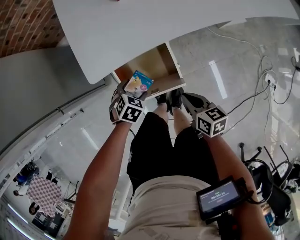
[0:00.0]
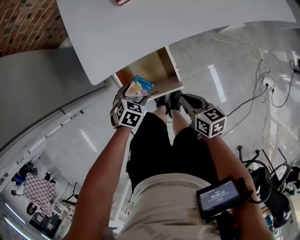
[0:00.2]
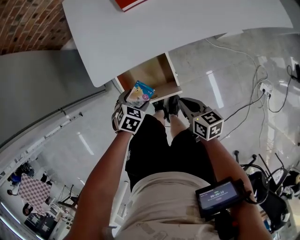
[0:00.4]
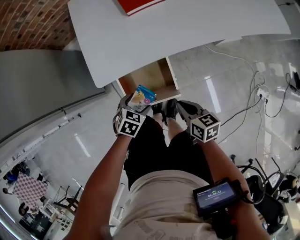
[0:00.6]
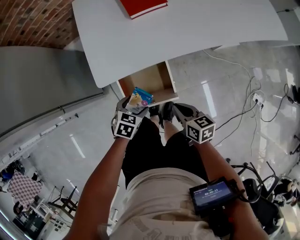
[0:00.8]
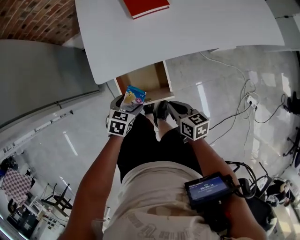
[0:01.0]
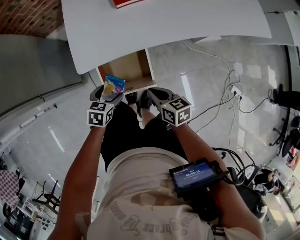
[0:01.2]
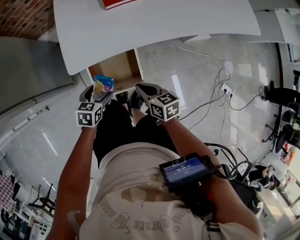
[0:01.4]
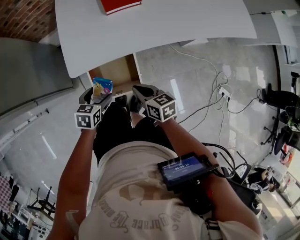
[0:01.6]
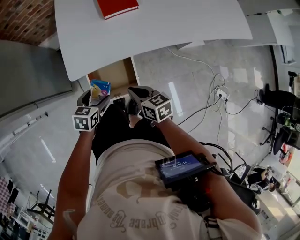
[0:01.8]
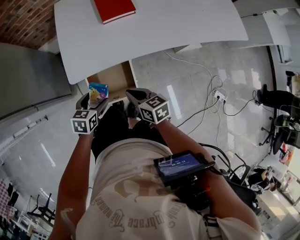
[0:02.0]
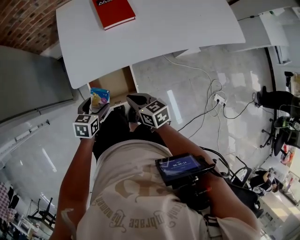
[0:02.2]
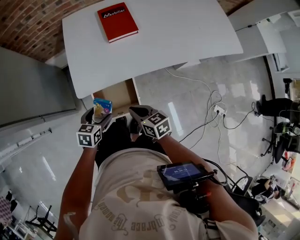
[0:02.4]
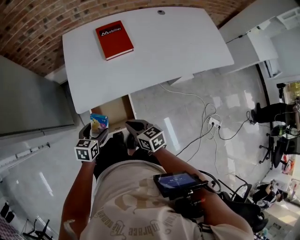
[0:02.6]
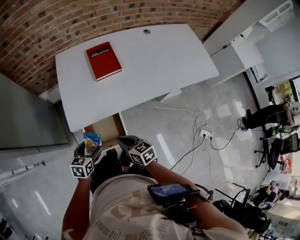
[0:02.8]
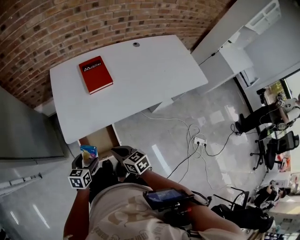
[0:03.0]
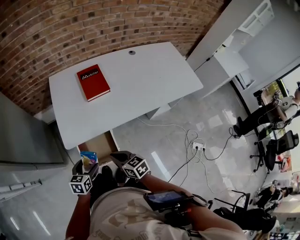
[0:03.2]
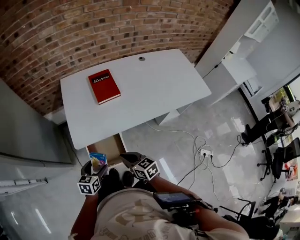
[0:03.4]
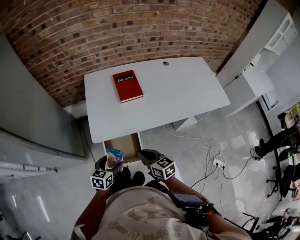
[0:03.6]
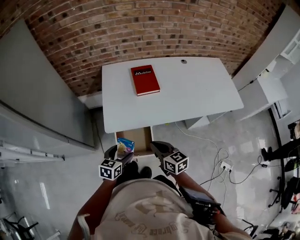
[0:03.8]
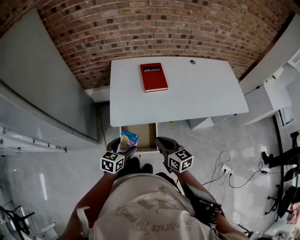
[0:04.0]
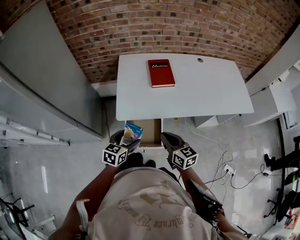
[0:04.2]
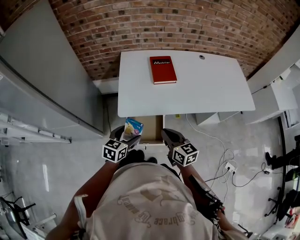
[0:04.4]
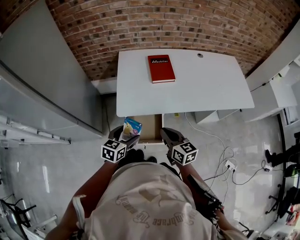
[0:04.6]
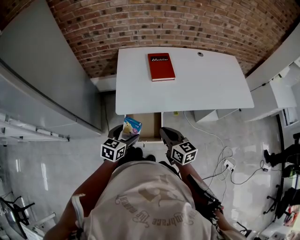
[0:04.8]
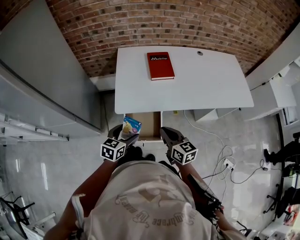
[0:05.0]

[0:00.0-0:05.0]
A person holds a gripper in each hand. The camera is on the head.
0.0 to 1.6 s: The two grippers go about 10 cm upward. The left gripper rotates approximately 40 degrees.
1.6 to 3.4 s: The grippers both shift upward by some 10 cm.
3.4 to 5.0 s: The two grippers go roughly 5 cm upward.

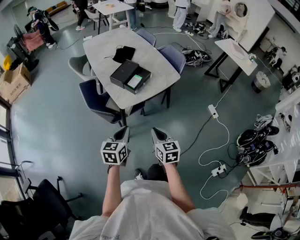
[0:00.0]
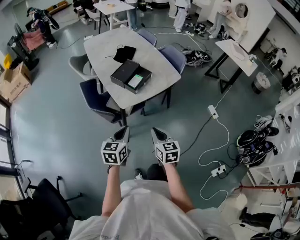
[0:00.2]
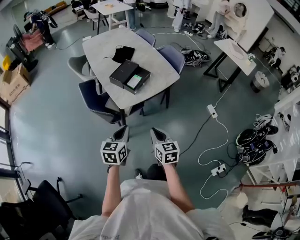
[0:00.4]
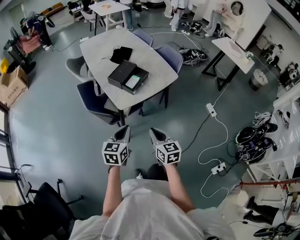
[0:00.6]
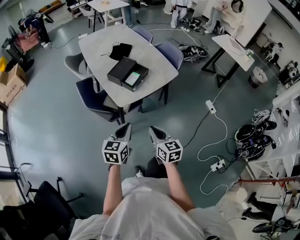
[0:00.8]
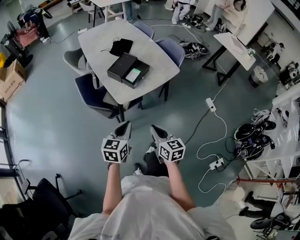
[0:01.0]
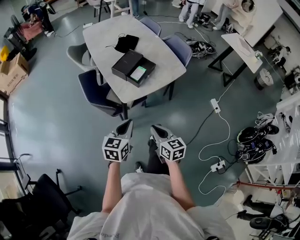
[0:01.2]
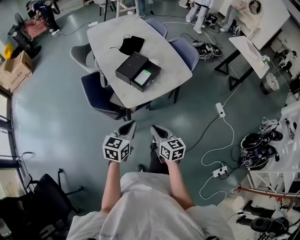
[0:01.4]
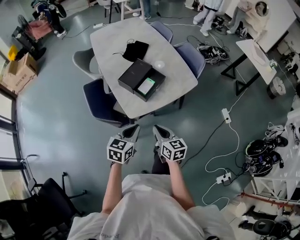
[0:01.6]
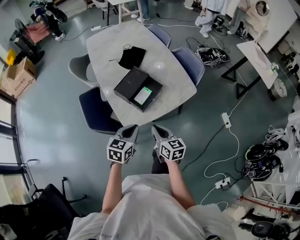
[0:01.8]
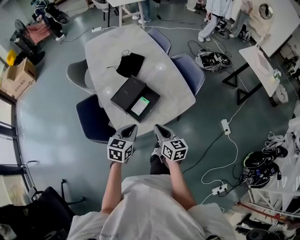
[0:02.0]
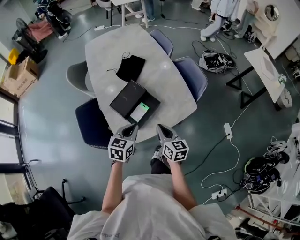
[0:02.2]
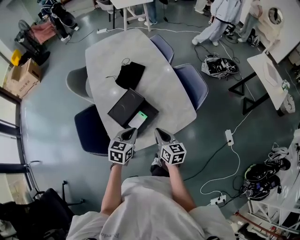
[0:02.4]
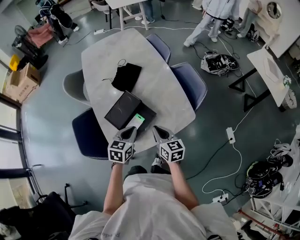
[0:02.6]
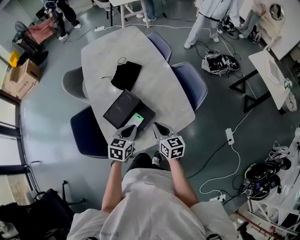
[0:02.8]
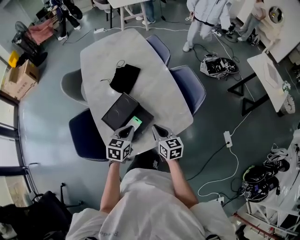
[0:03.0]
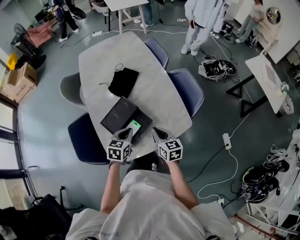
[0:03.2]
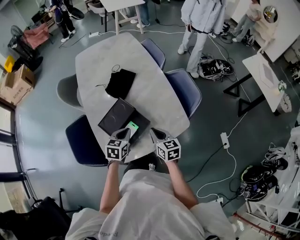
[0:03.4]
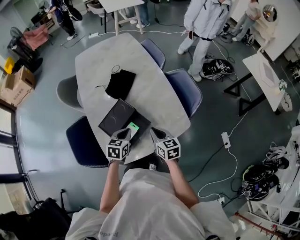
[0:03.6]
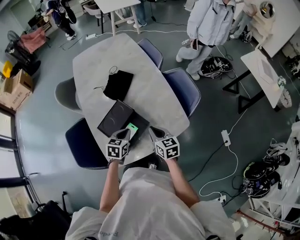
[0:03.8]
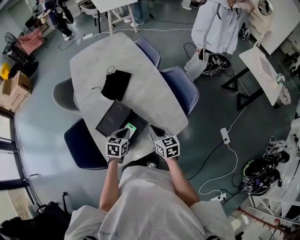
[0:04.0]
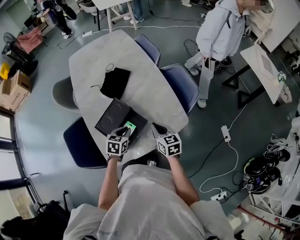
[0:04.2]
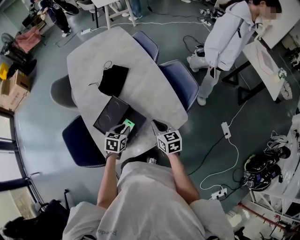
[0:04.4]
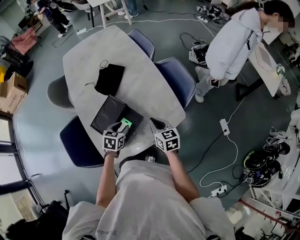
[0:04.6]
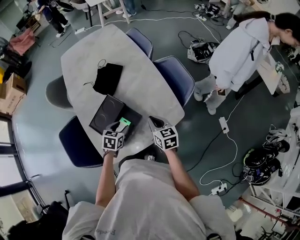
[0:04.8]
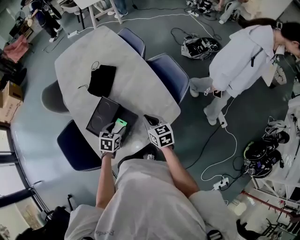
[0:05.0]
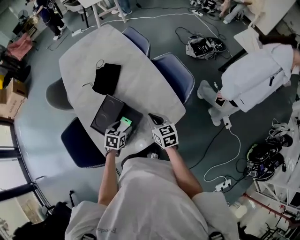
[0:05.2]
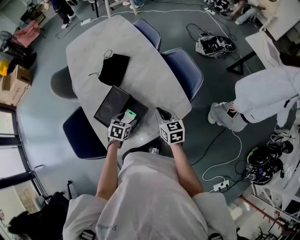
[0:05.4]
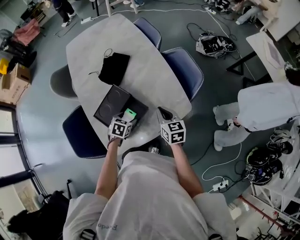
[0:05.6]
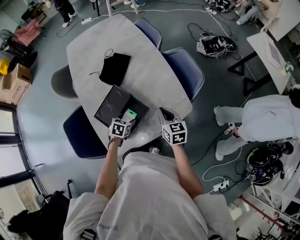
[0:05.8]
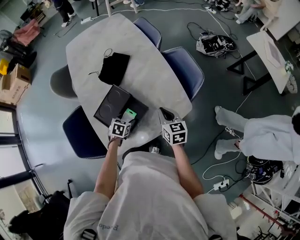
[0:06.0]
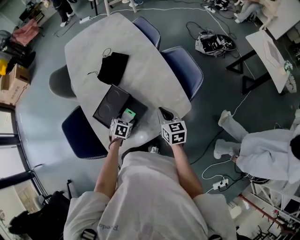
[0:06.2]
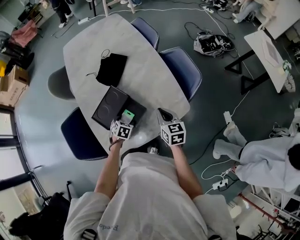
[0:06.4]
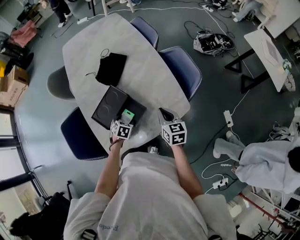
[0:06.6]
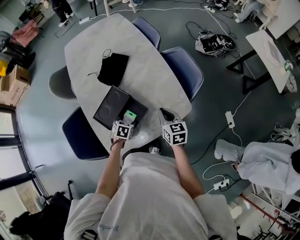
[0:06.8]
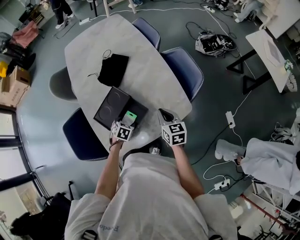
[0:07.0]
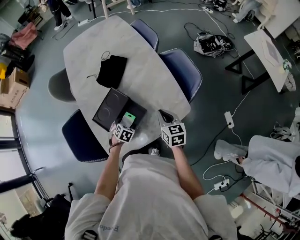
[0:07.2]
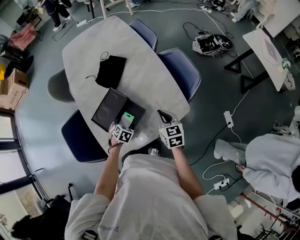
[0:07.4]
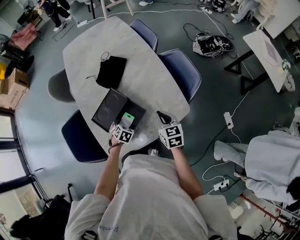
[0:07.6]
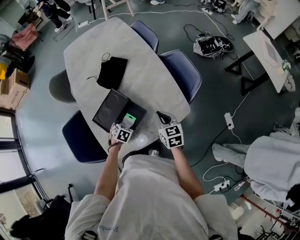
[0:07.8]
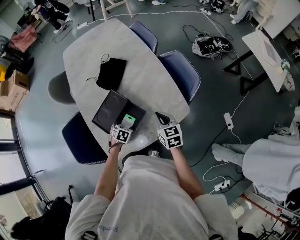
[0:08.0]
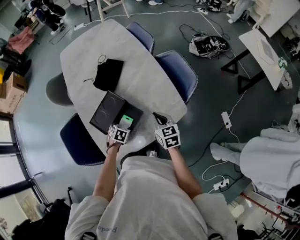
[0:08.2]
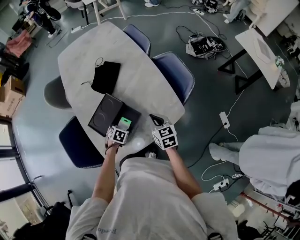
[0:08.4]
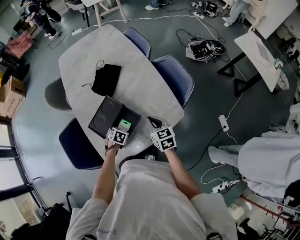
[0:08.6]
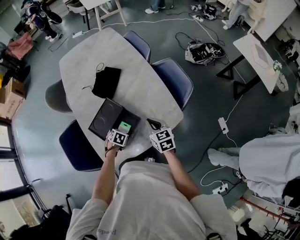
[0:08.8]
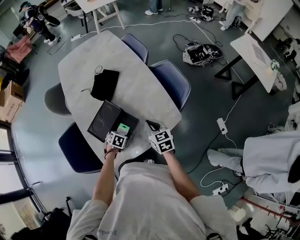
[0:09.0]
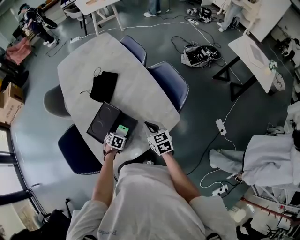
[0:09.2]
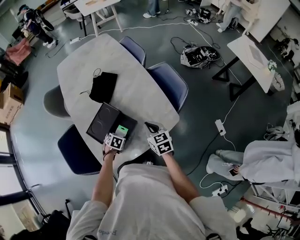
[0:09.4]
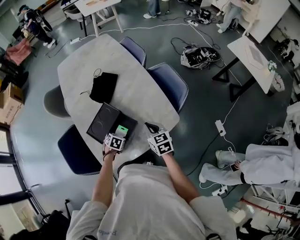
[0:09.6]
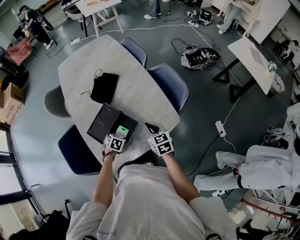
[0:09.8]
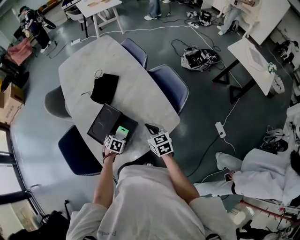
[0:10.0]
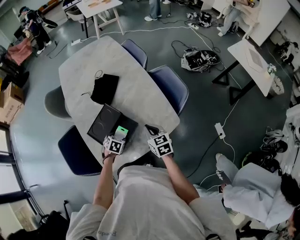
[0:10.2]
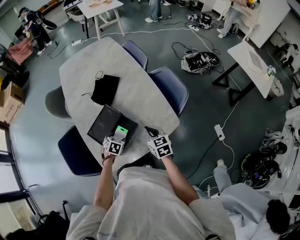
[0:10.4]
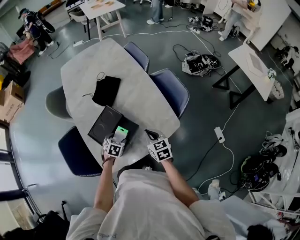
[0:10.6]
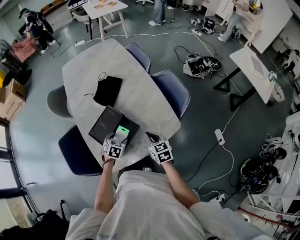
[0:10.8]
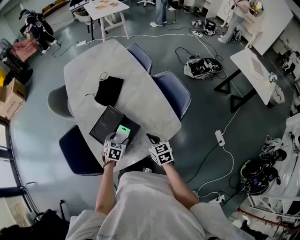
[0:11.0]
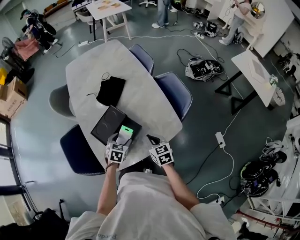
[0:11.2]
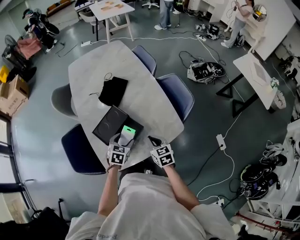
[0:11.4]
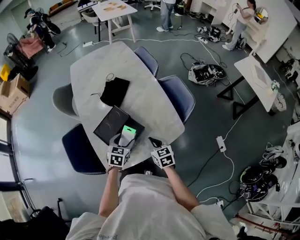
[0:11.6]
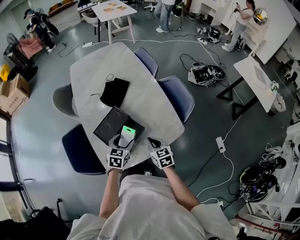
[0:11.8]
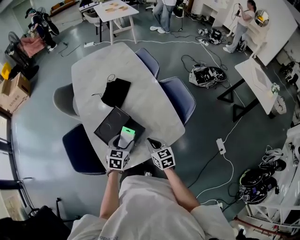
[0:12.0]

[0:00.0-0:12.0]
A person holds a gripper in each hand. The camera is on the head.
0.0 to 1.6 s: The grippers both shift forward by some 15 cm.
1.6 to 3.0 s: The two grippers go about 30 cm forward.
3.0 to 4.4 s: The left gripper is displaced downward by roughly 10 cm; the right gripper changes place by some 5 cm.
4.4 to 6.0 s: The left gripper goes some 10 cm downward, and opens up.
6.0 to 10.4 s: The grippers make only small movements.
10.4 to 12.0 s: The left gripper goes some 10 cm upward, and changes its angle by some 30 degrees; the right gripper shifts by some 5 cm.

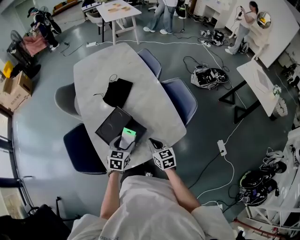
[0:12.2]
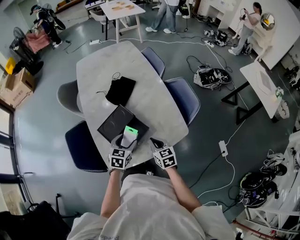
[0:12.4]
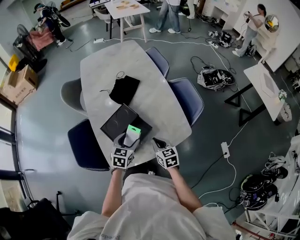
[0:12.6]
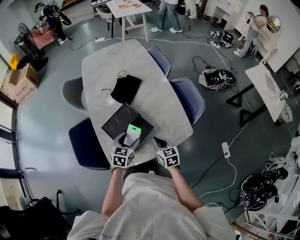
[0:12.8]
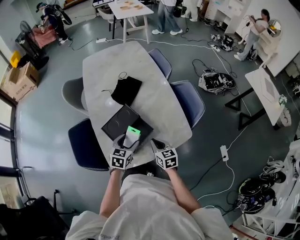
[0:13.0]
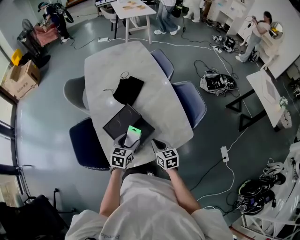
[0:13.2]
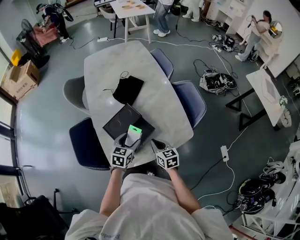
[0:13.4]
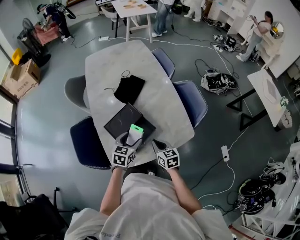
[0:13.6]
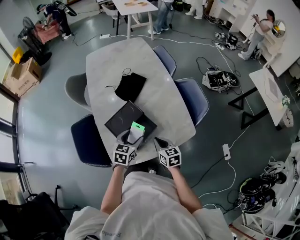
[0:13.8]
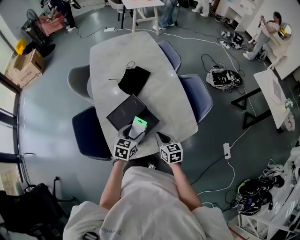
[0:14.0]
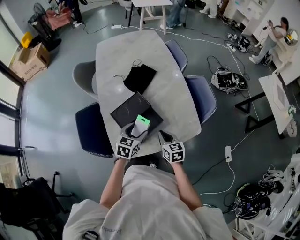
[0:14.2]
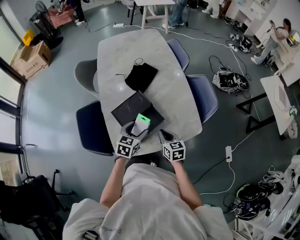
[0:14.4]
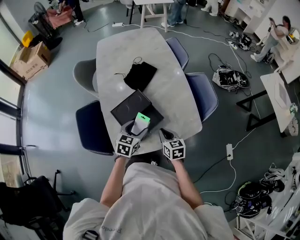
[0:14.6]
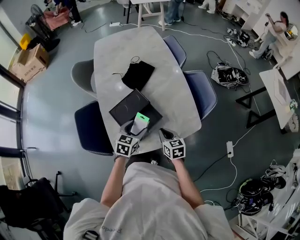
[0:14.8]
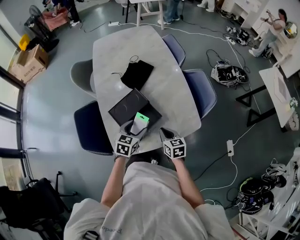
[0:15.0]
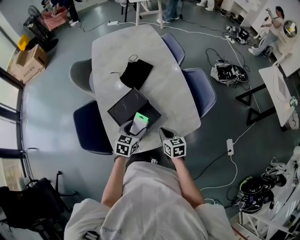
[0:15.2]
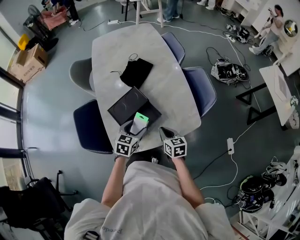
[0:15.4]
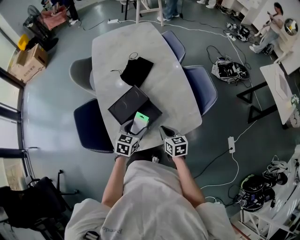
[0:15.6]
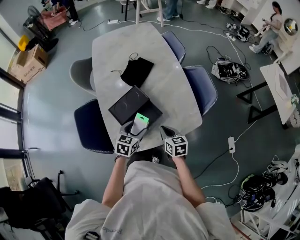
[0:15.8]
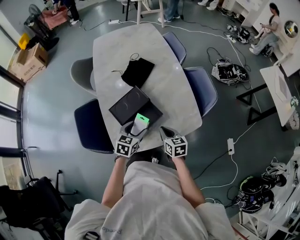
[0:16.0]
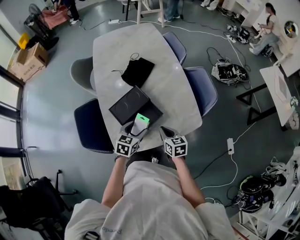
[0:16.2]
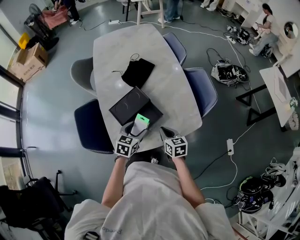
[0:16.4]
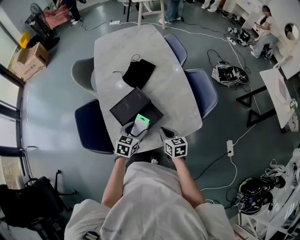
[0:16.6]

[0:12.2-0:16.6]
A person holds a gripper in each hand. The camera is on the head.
12.2 to 16.6 s: The grippers move only a little.

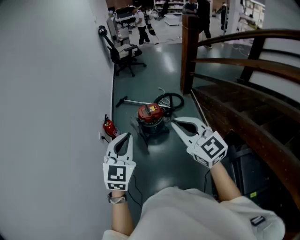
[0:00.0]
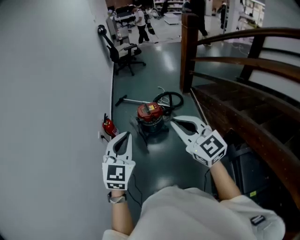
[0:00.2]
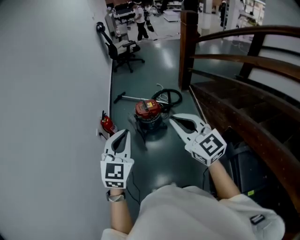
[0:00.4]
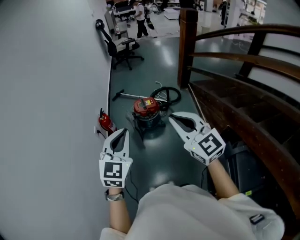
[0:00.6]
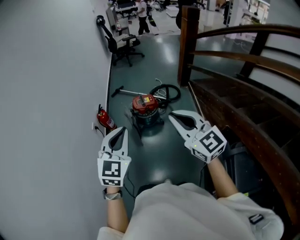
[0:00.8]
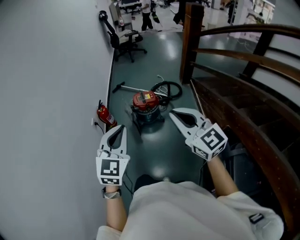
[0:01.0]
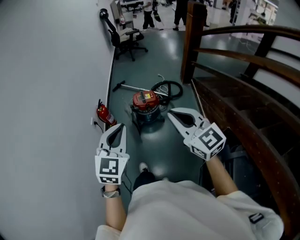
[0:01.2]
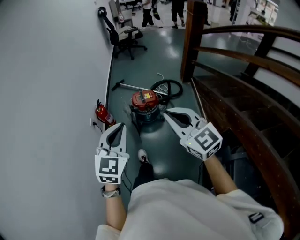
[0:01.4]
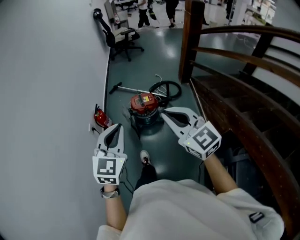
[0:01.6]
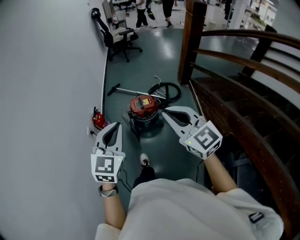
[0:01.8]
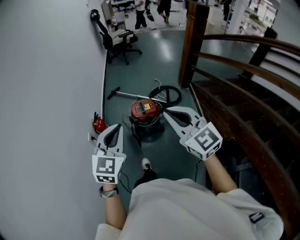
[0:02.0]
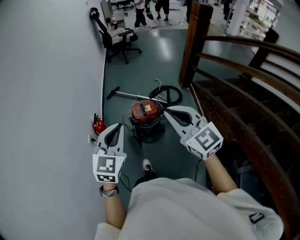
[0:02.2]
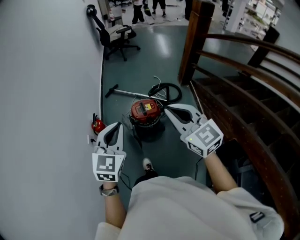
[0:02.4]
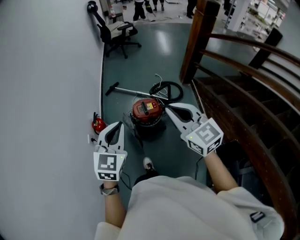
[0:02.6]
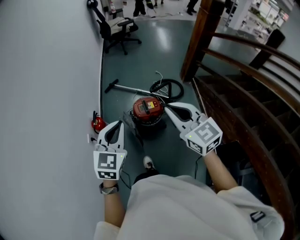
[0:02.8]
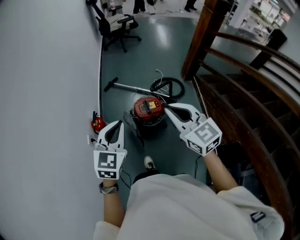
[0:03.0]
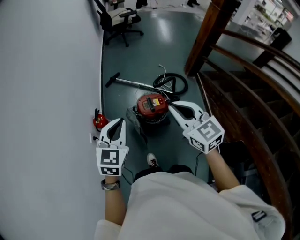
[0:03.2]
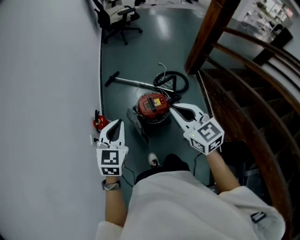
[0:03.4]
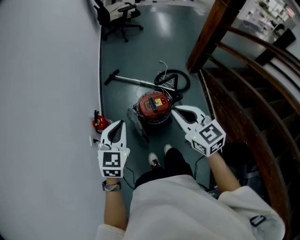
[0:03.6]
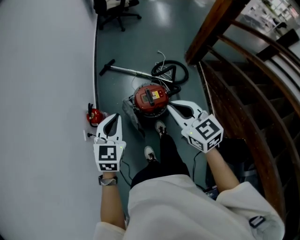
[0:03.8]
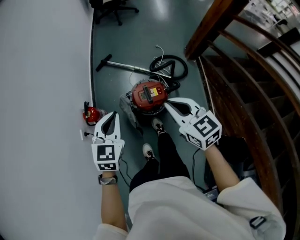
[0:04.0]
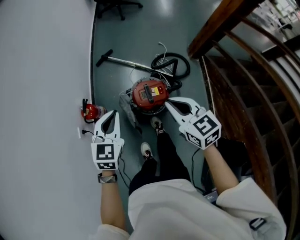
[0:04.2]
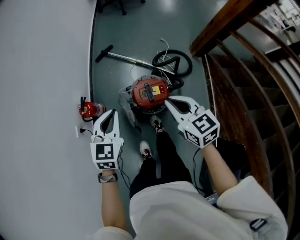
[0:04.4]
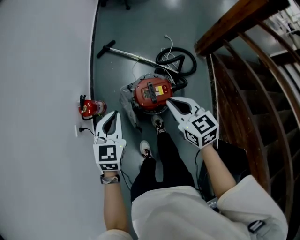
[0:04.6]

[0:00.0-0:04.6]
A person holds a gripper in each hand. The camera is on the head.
0.0 to 1.6 s: Both grippers move forward, about 10 cm.
1.6 to 3.0 s: The grippers both shift forward by some 25 cm.
3.0 to 4.6 s: The grippers both shift downward and forward by approximately 30 cm. The right gripper swivels roughly 20 degrees.
